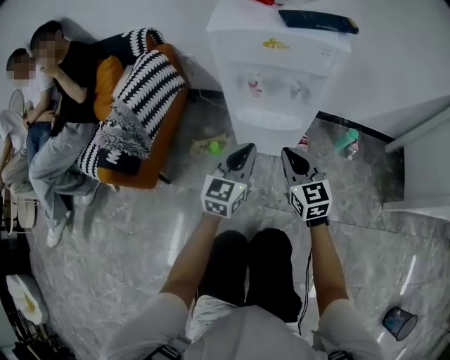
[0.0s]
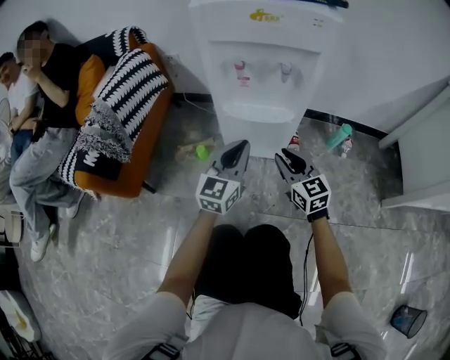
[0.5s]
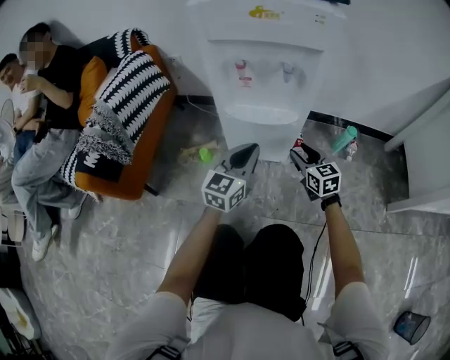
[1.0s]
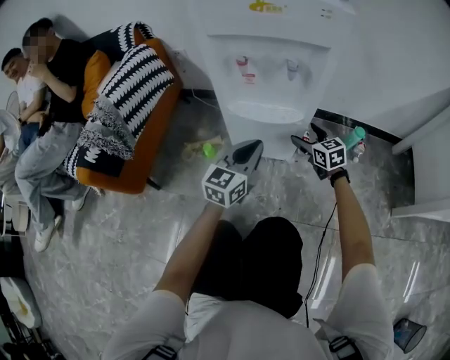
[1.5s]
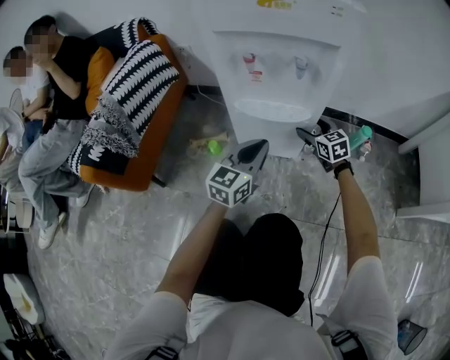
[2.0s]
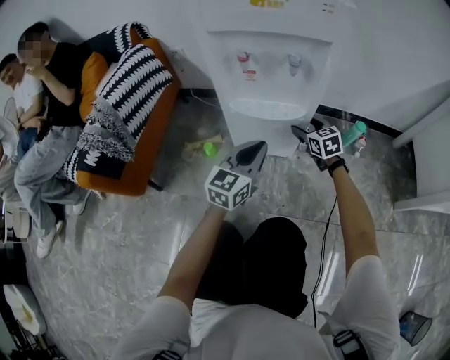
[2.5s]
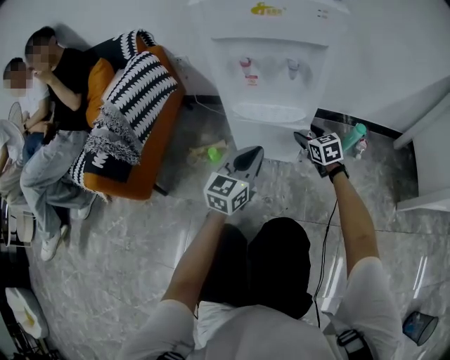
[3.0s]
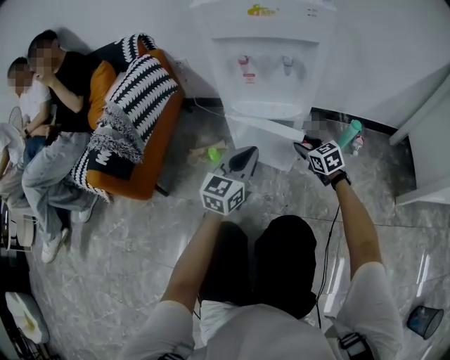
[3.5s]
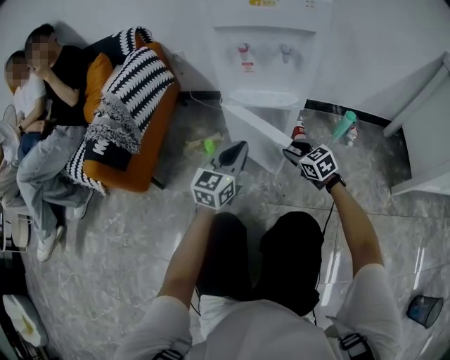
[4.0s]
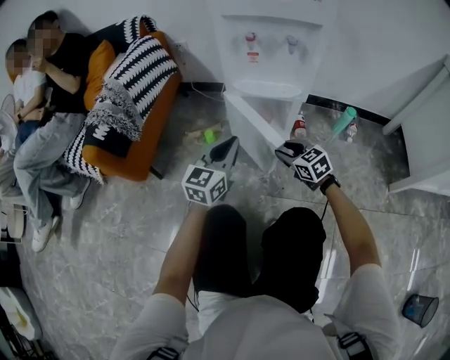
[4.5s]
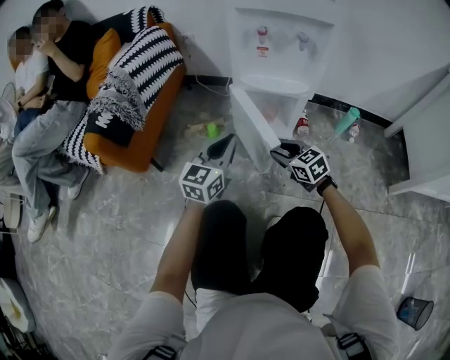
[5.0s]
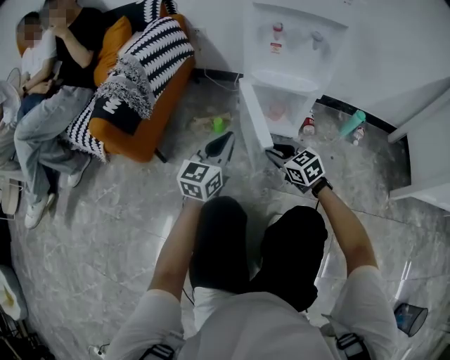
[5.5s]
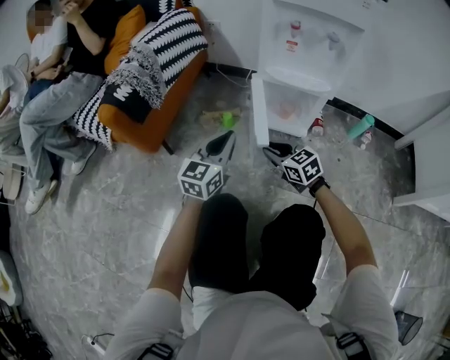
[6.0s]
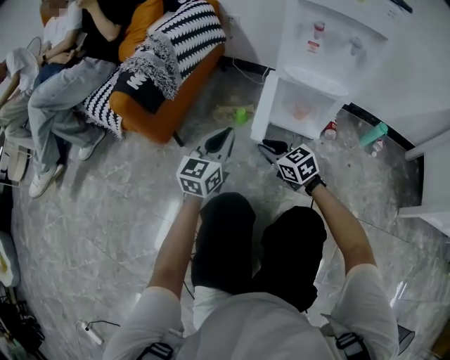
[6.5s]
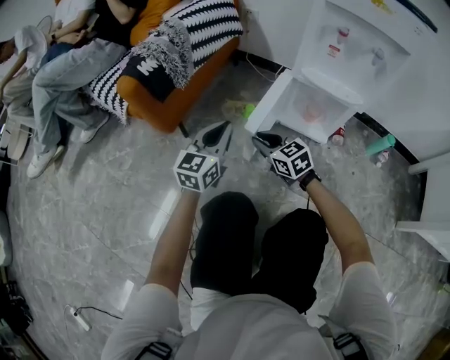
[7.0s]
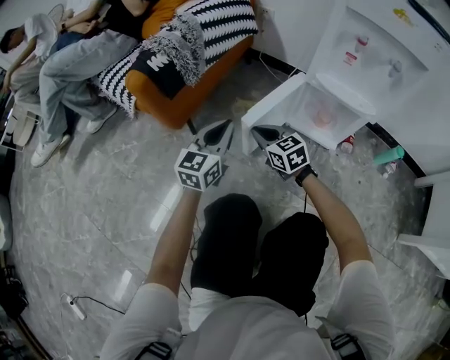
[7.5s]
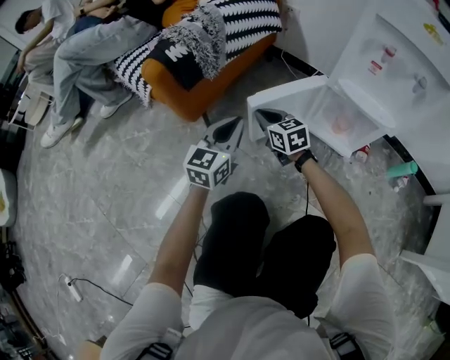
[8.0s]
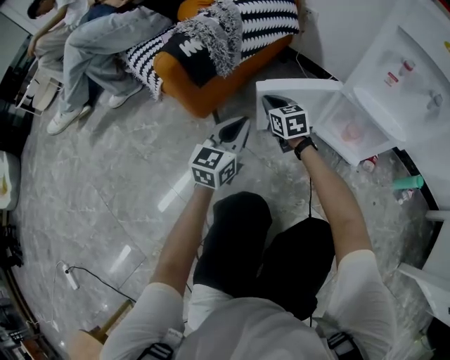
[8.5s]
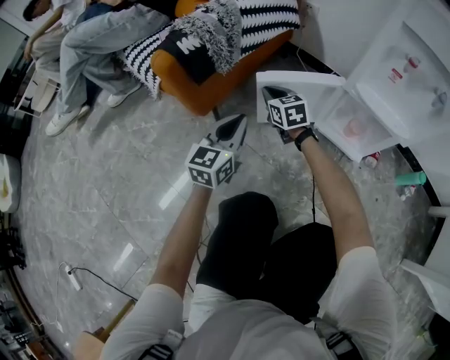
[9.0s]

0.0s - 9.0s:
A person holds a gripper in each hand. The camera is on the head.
0.0s - 2.0s: The left gripper is displaced downward by approximately 10 cm, while the right gripper travels downward, forward and to the right by approximately 30 cm, and opens.
2.0s - 4.5s: The left gripper heads backward and to the left, covering approximately 15 cm. The right gripper heads backward and to the left, covering approximately 20 cm, and closes its fingers.
4.5s - 7.0s: The two grippers go about 20 cm to the left.
7.0s - 9.0s: The left gripper shifts about 5 cm to the left. The right gripper moves forward and to the left, approximately 20 cm.

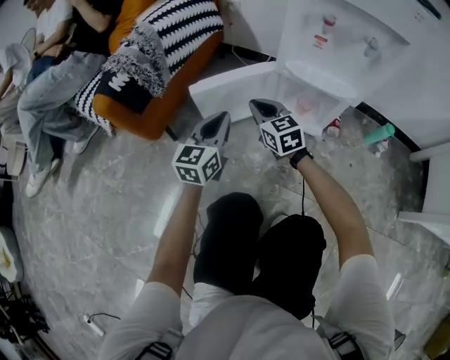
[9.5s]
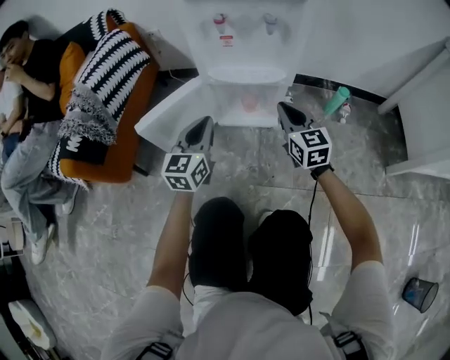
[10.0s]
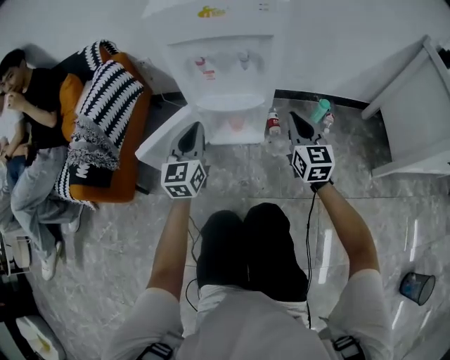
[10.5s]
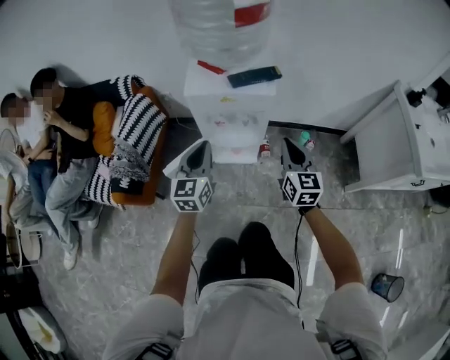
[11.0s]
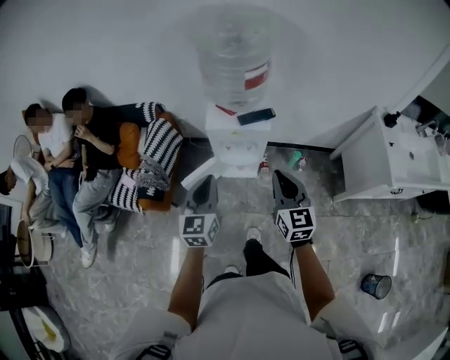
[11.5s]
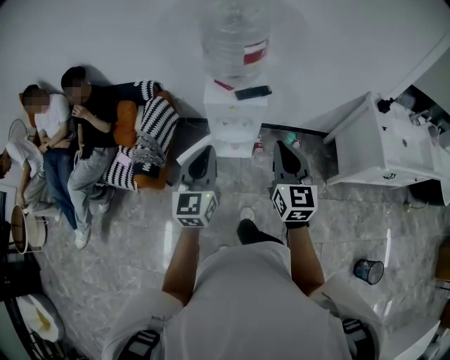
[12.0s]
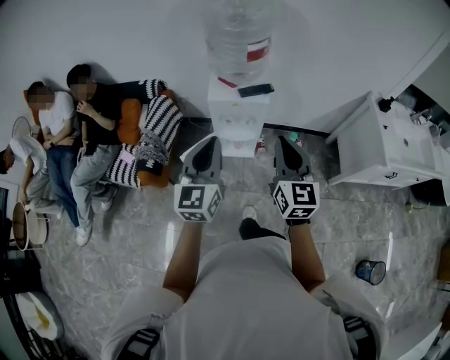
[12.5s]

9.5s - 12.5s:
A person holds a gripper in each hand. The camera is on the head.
9.5s - 11.0s: Both grippers move upward and to the right, approximately 50 cm. The right gripper swivels about 40 degrees.
11.0s - 12.5s: The two grippers go roughly 40 cm upward and backward.

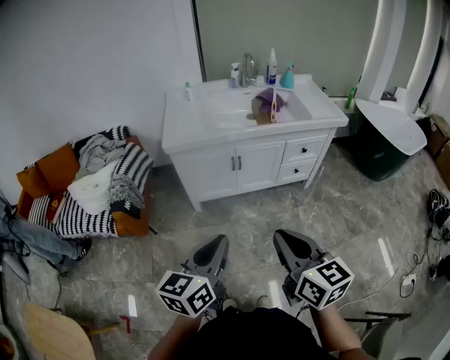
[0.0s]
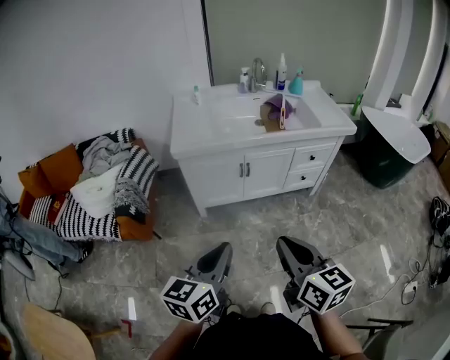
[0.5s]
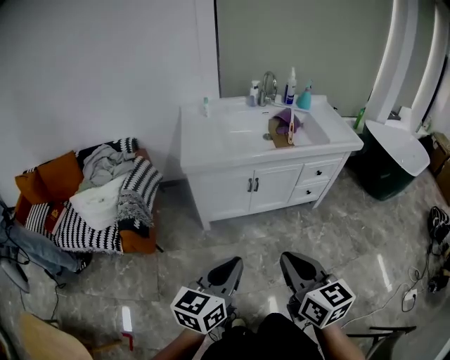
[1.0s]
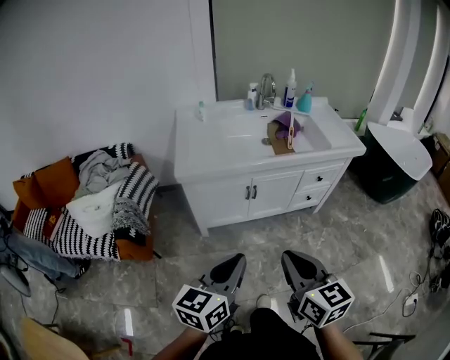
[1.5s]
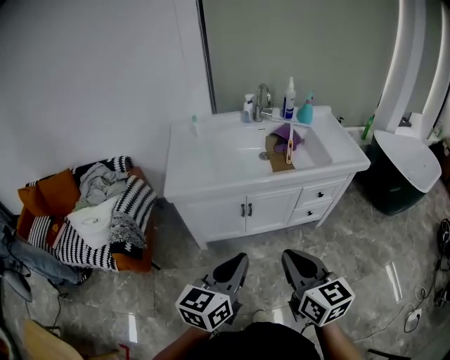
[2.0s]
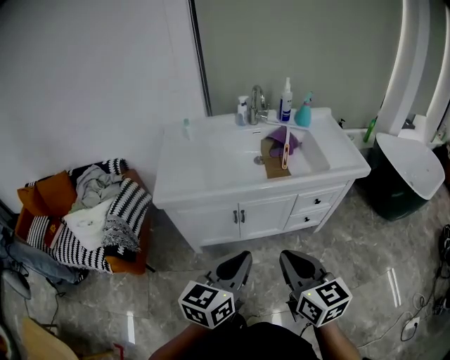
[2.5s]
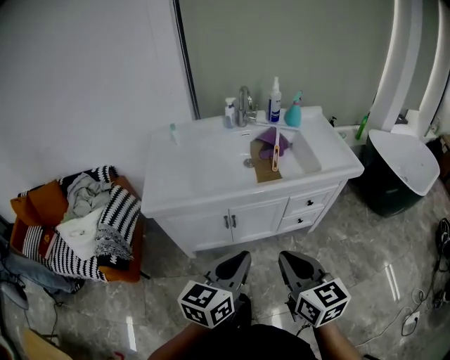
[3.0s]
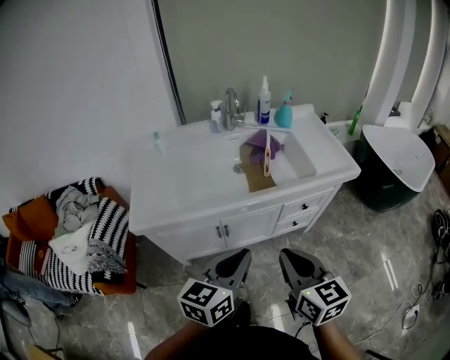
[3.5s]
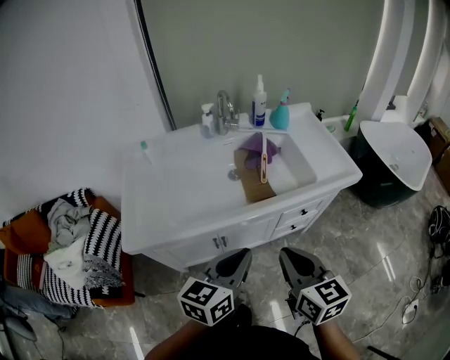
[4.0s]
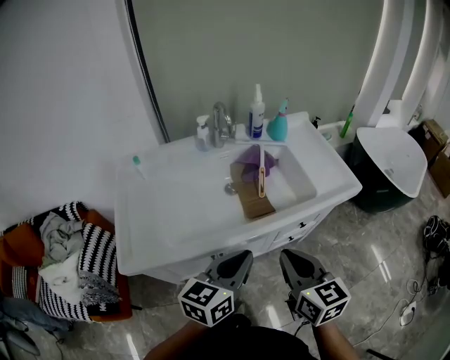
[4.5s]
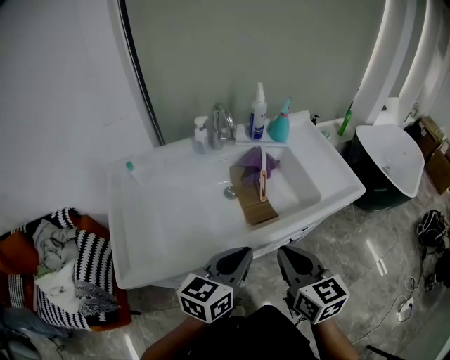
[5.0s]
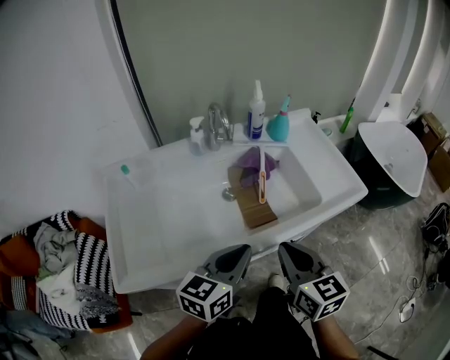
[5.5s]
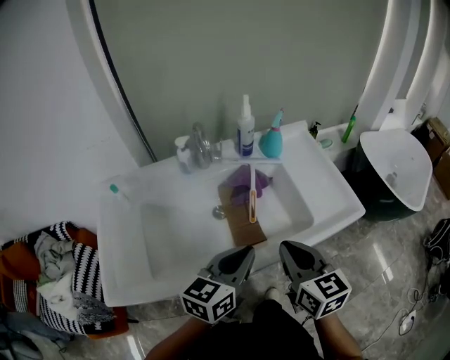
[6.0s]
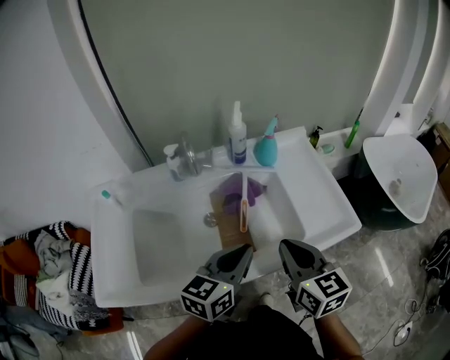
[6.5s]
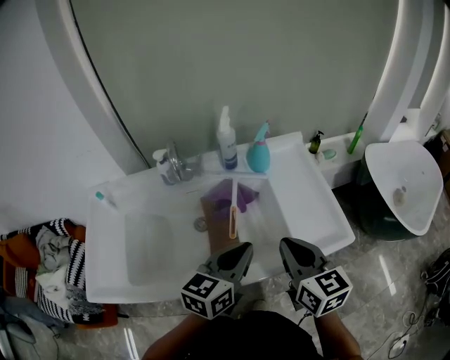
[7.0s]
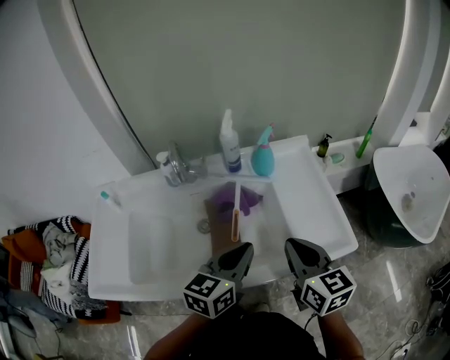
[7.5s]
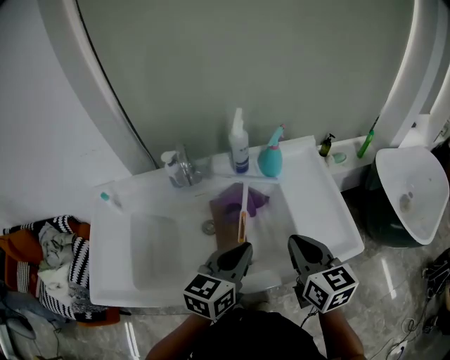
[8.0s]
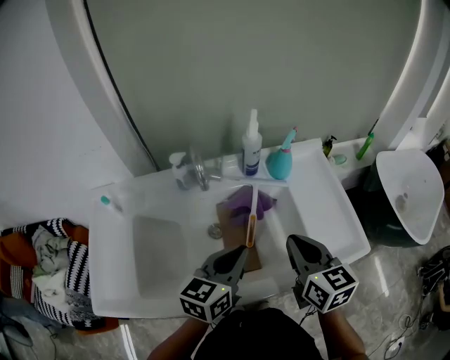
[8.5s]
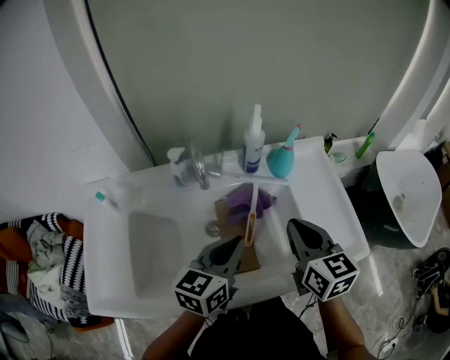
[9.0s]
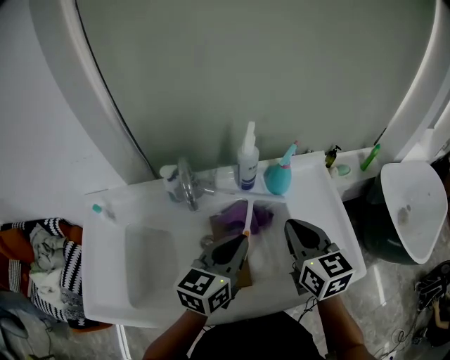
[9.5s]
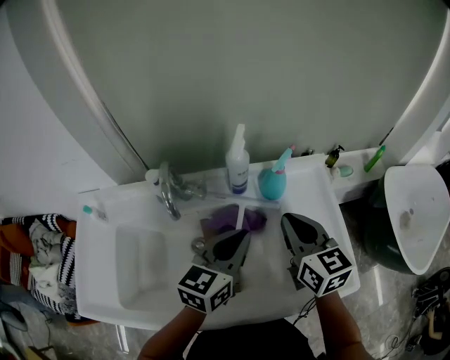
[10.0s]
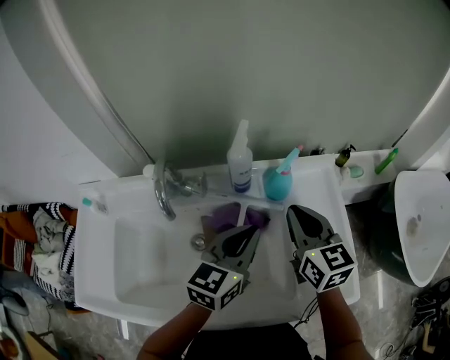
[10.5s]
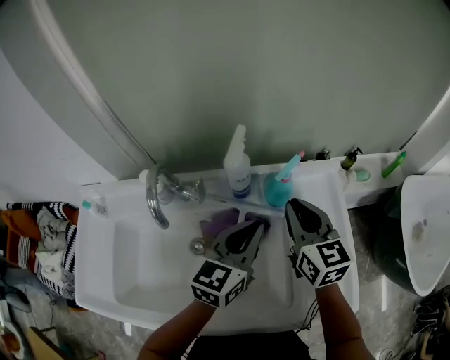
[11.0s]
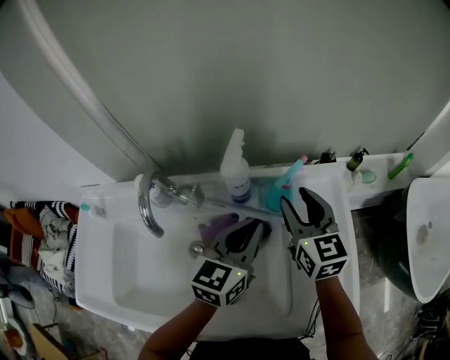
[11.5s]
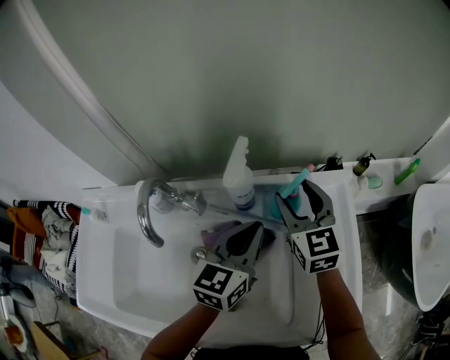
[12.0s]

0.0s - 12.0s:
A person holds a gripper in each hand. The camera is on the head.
0.0s - 2.0s: Both grippers move forward, some 20 cm.
2.0s - 4.0s: Both grippers travel together forward, about 25 cm.
4.0s - 6.0s: Both grippers move forward, about 20 cm.
6.0s - 8.0s: Both grippers move forward and to the right, some 15 cm.
8.0s - 10.0s: The two grippers go approximately 15 cm forward.
10.0s - 12.0s: Both grippers move forward, about 15 cm. The right gripper opens.

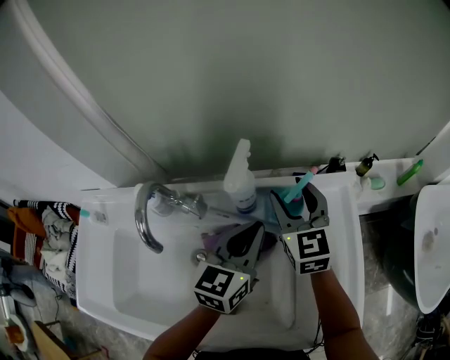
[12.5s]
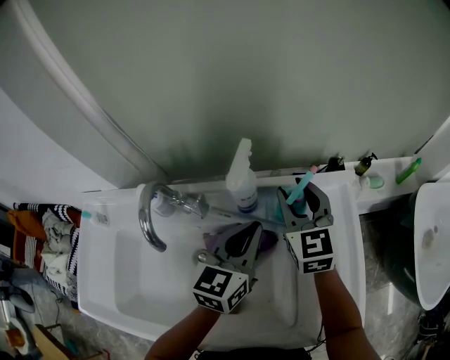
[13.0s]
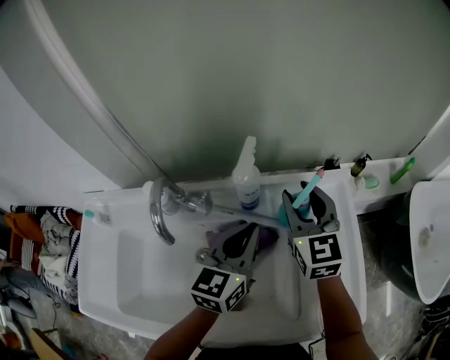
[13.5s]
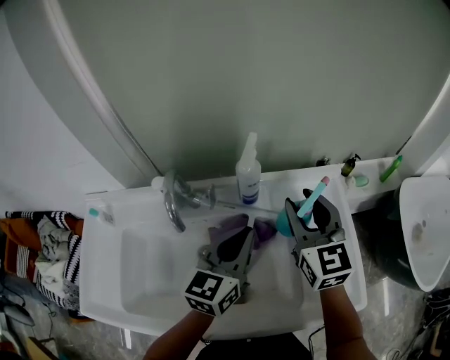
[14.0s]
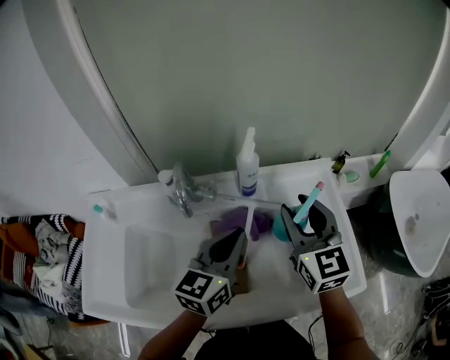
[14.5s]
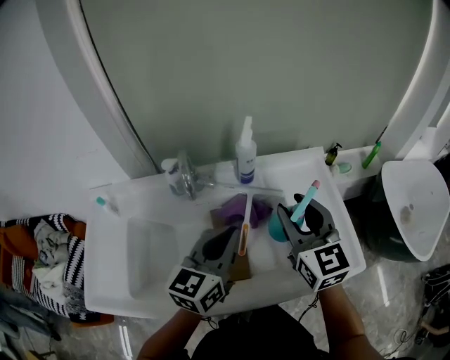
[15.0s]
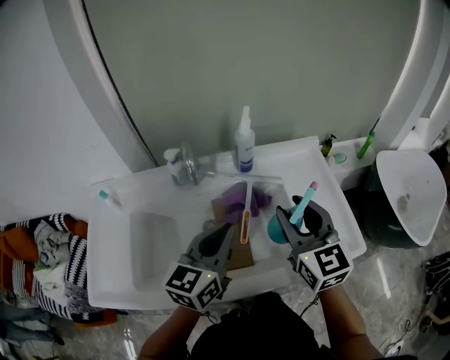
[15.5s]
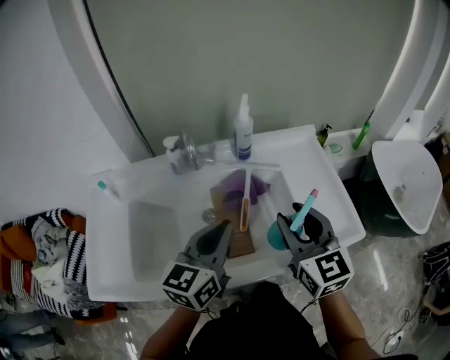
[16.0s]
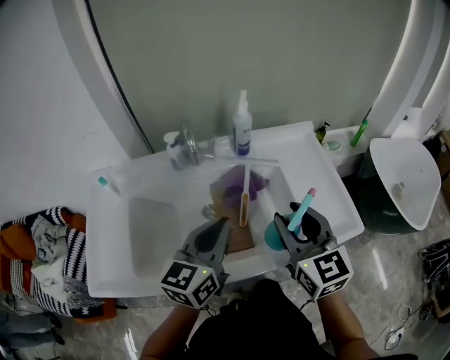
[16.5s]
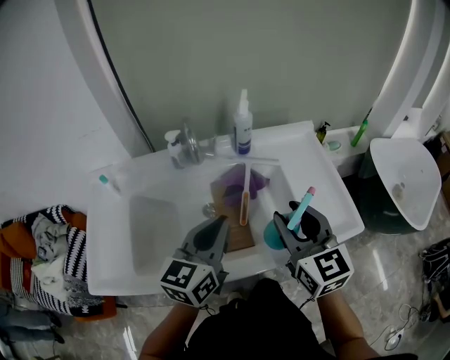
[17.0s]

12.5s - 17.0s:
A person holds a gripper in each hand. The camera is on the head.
12.5s - 14.5s: The right gripper travels backward and upward by approximately 20 cm. The left gripper heads backward, upward and to the left, covering some 15 cm.
14.5s - 17.0s: The two grippers go approximately 15 cm backward.
